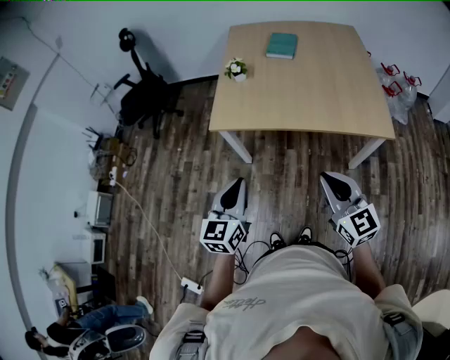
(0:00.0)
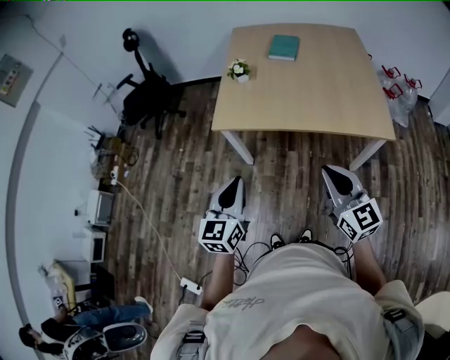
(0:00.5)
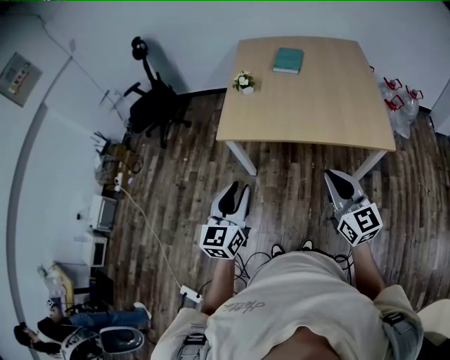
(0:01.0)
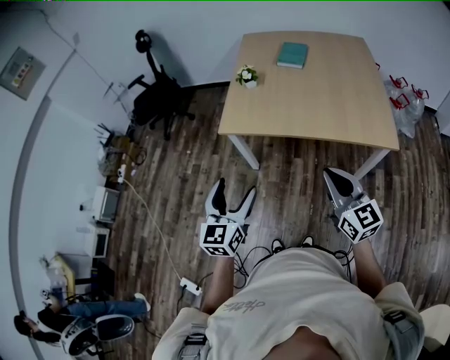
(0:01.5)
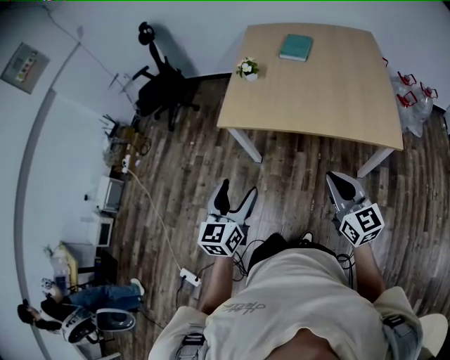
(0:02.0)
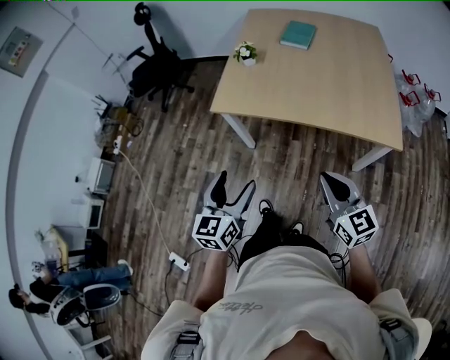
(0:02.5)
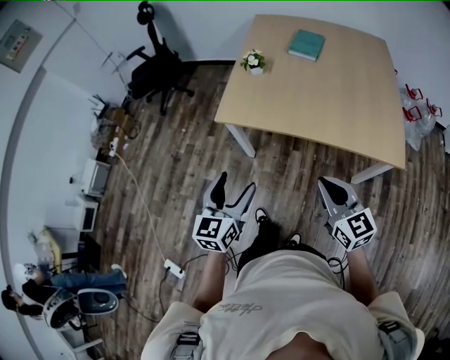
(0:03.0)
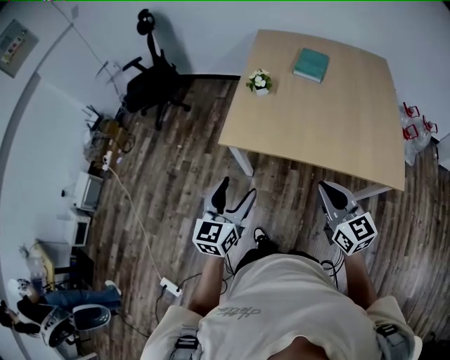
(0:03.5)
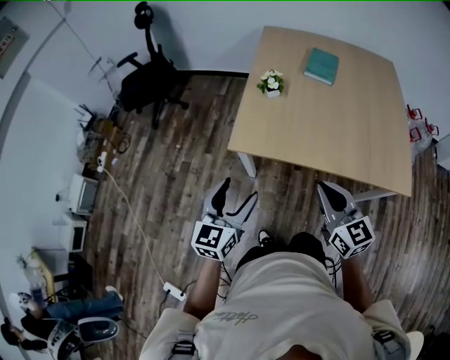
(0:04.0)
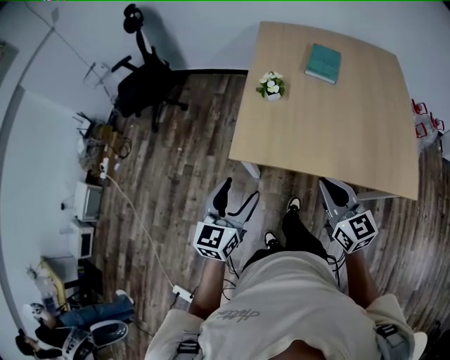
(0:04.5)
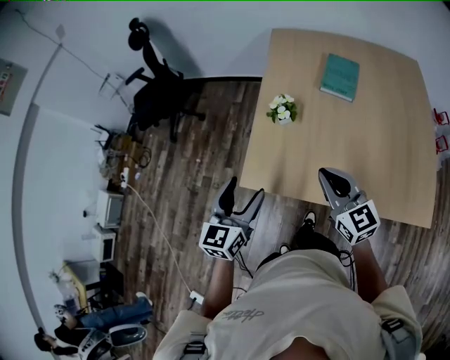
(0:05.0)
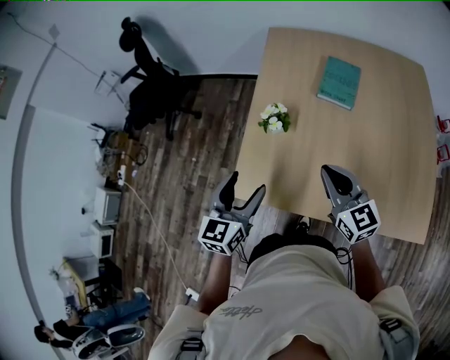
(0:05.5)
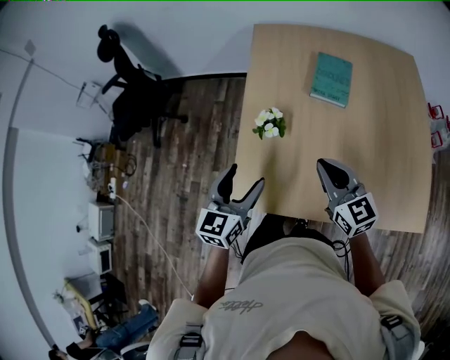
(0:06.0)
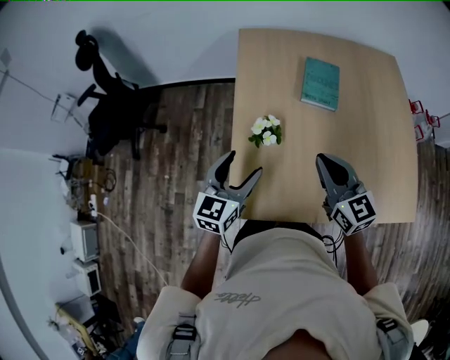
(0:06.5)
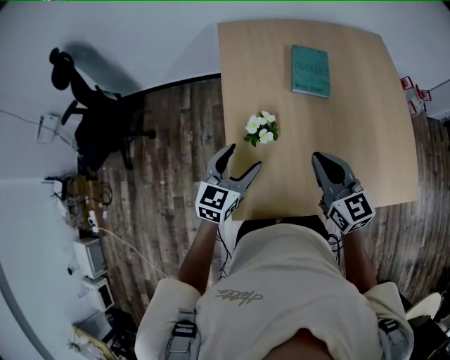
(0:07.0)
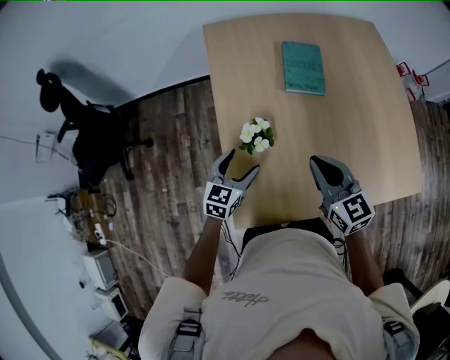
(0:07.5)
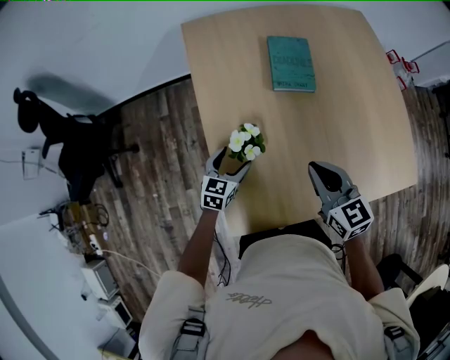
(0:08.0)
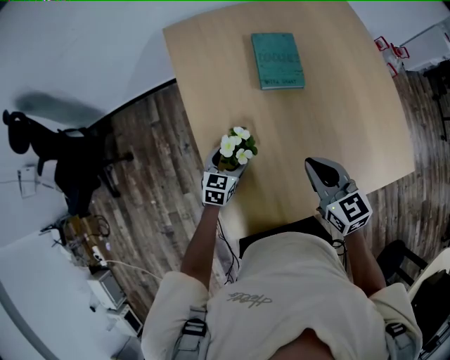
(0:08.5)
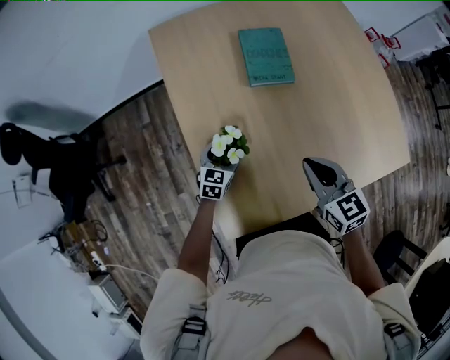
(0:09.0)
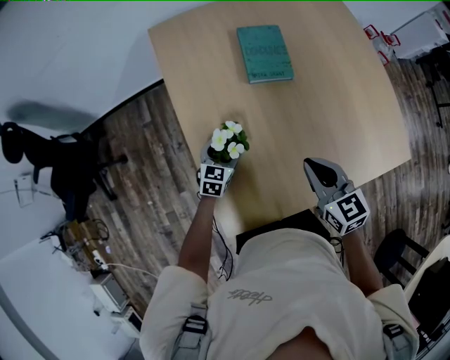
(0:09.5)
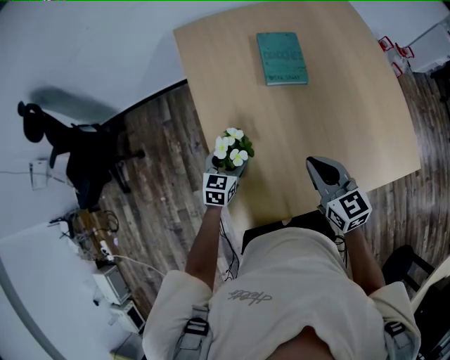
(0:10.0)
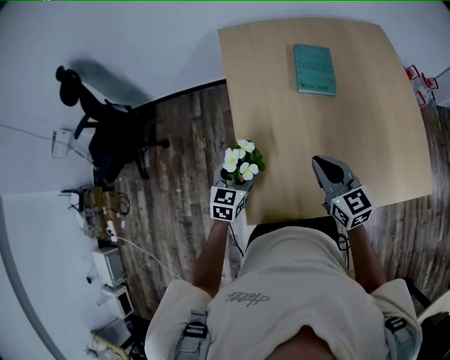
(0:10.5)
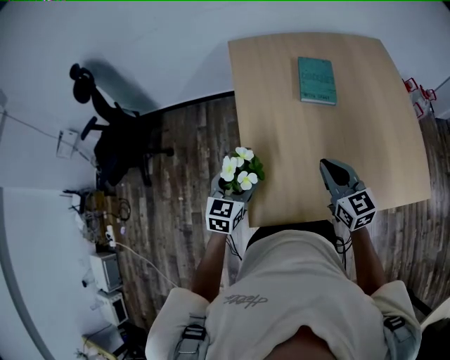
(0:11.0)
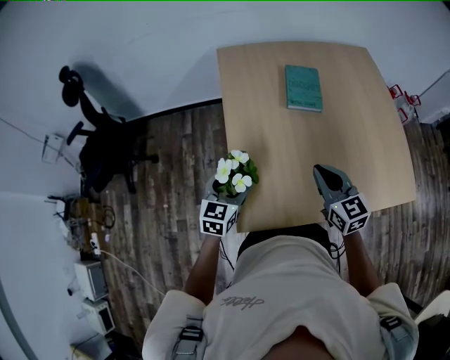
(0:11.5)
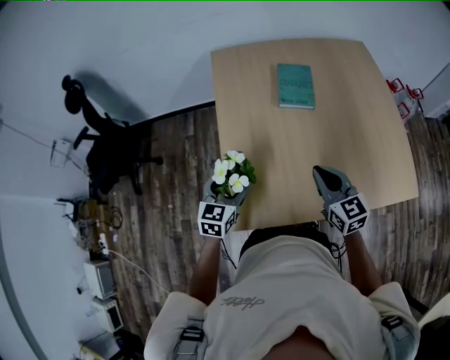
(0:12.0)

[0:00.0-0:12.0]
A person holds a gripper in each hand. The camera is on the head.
0:00.0 to 0:02.0: The right gripper shifts by some 5 cm. Meanwhile the left gripper opens its fingers.
0:02.0 to 0:04.0: The two grippers go about 20 cm forward and to the left.
0:04.0 to 0:06.0: The grippers both shift forward by approximately 30 cm.
0:06.0 to 0:08.0: The left gripper travels downward and forward by some 25 cm, and changes its angle by about 30 degrees, while the right gripper shifts by roughly 5 cm, and turns by about 20 degrees.
0:10.0 to 0:12.0: The left gripper heads upward and backward, covering some 15 cm.

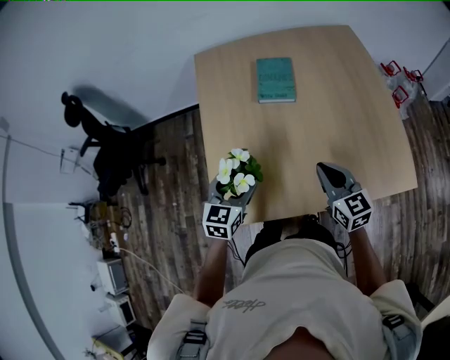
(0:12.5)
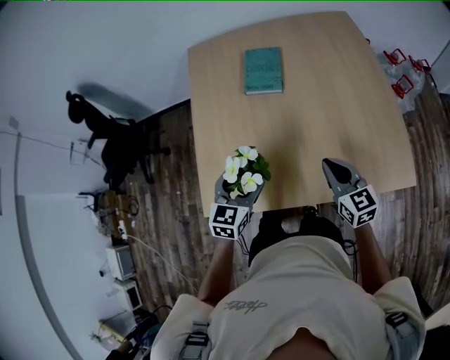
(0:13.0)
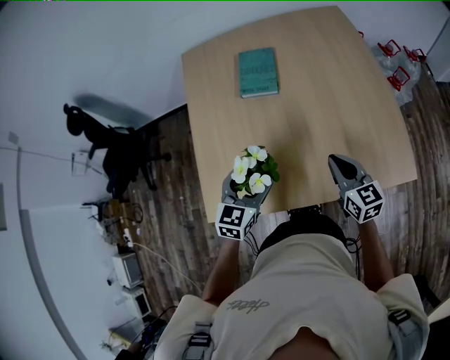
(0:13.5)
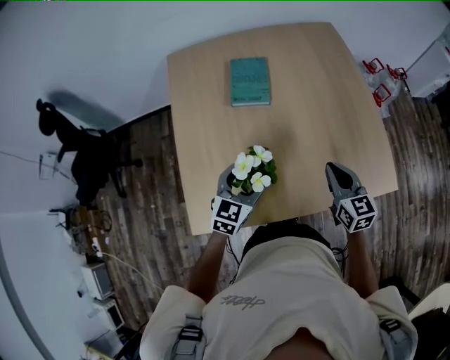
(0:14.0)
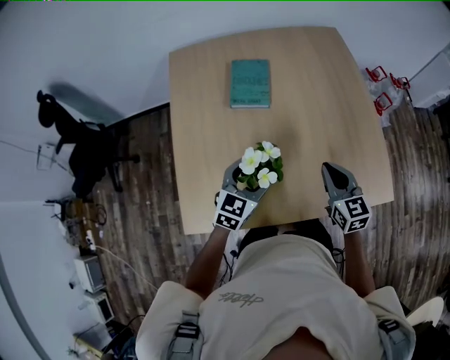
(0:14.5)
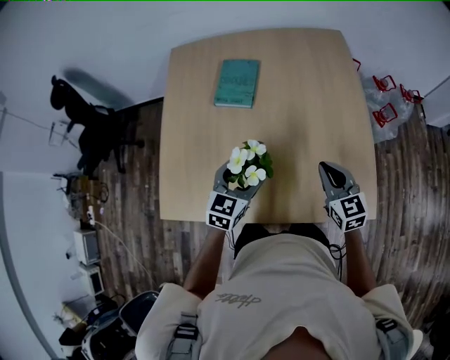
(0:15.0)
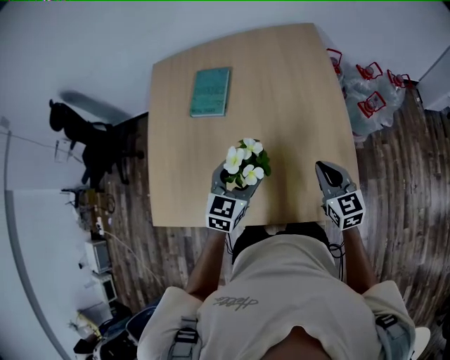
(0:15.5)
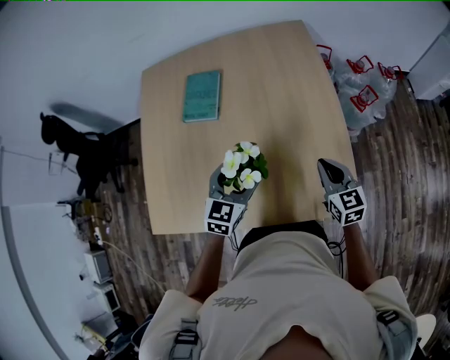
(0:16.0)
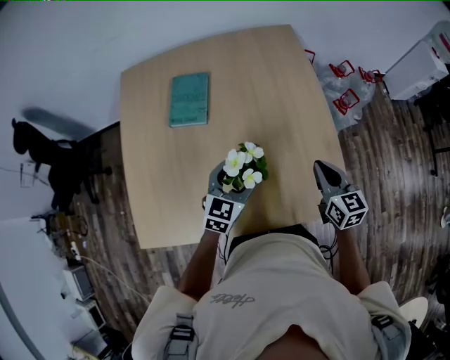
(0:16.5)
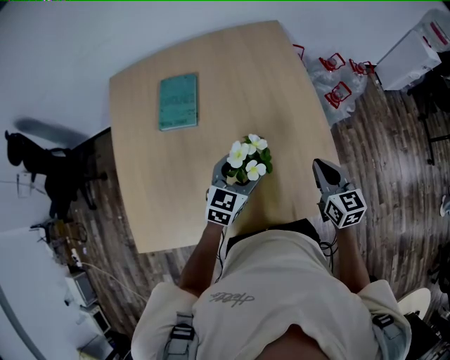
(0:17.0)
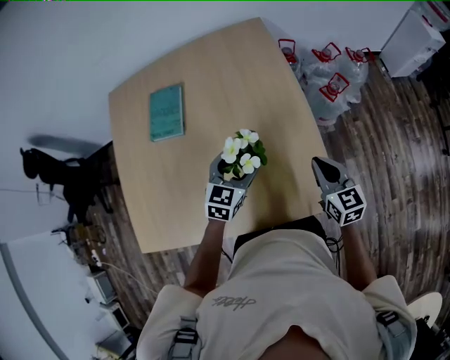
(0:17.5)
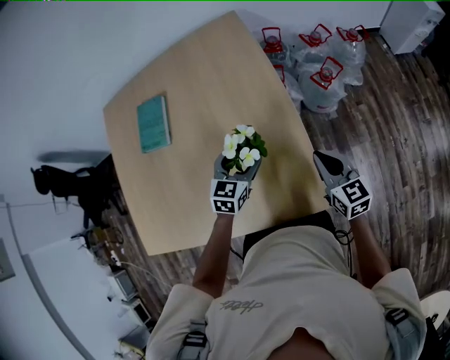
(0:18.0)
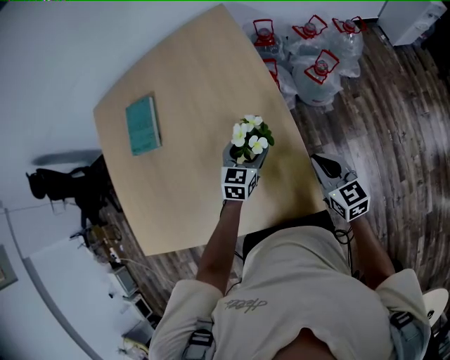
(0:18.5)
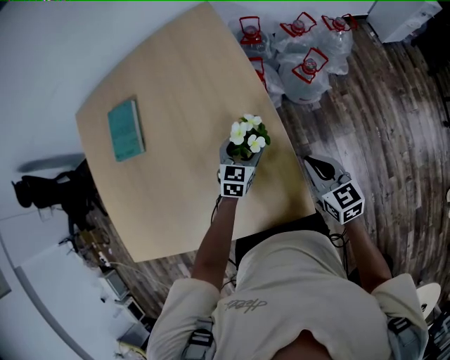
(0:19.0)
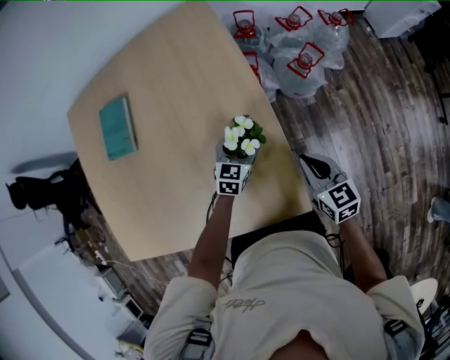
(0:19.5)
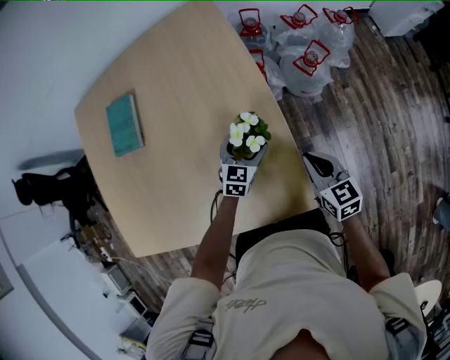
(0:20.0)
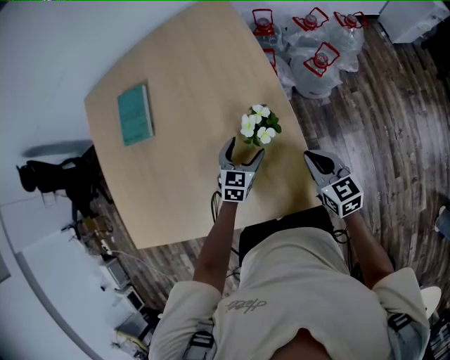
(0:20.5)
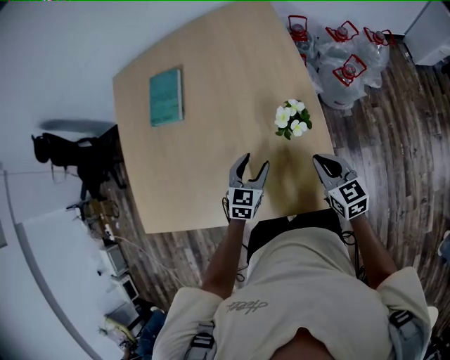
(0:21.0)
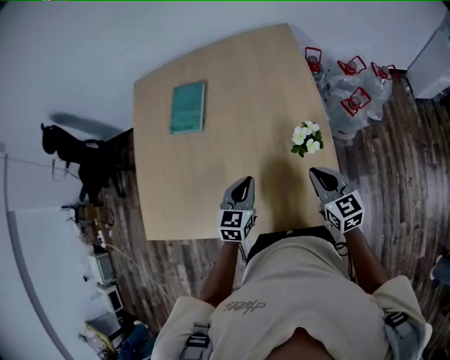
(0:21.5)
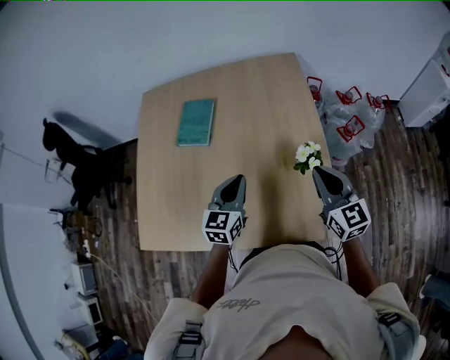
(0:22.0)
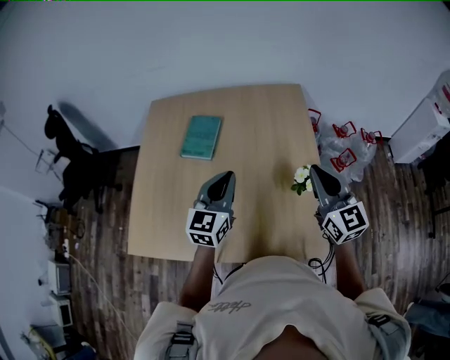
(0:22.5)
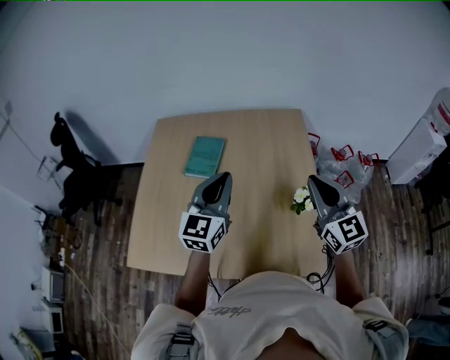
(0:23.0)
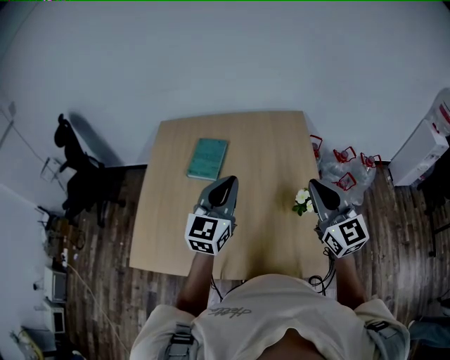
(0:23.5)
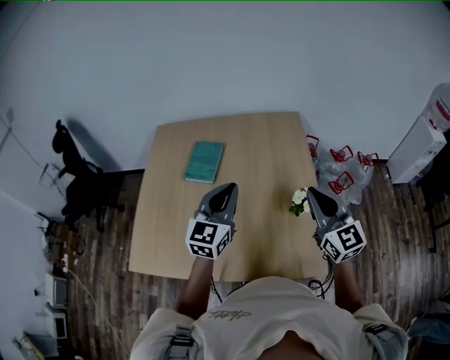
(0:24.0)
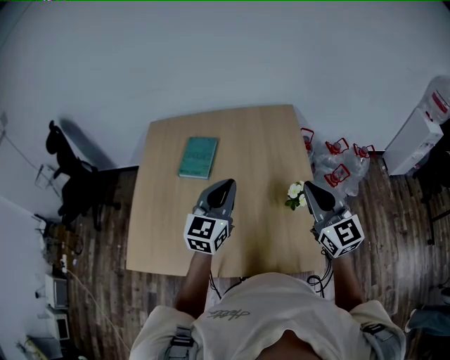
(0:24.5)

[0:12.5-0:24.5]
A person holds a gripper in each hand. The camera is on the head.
0:12.5 to 0:14.5: Both grippers travel together to the right, roughly 15 cm.
0:14.5 to 0:16.5: The two grippers go some 20 cm to the right.
0:16.5 to 0:18.5: The left gripper is displaced to the right, forward and downward by roughly 30 cm, while the right gripper moves to the right and downward, some 20 cm.
0:18.5 to 0:20.5: The left gripper changes place by about 5 cm.
0:20.5 to 0:22.5: The grippers both shift upward and to the left by roughly 35 cm. The left gripper points its fingers approximately 30 degrees further upward, and closes. Meanwhile the right gripper changes its angle by roughly 40 degrees.

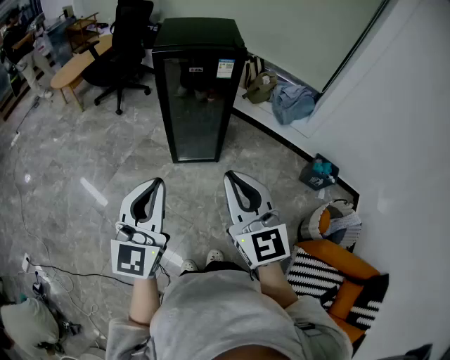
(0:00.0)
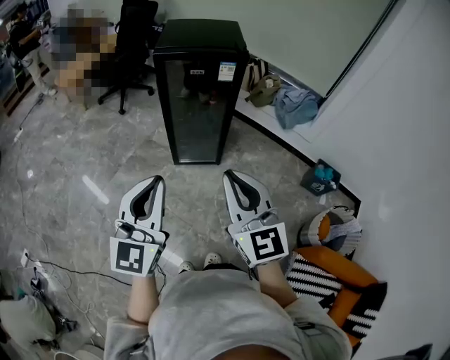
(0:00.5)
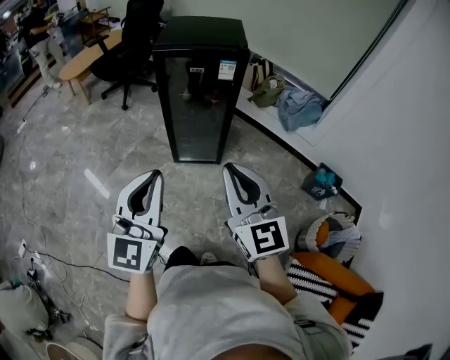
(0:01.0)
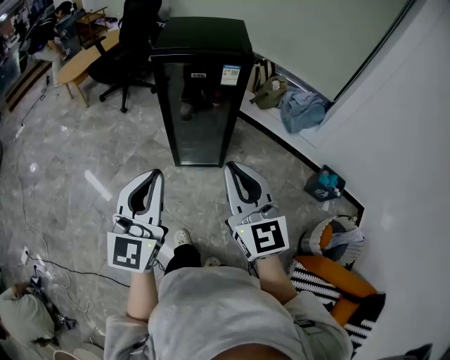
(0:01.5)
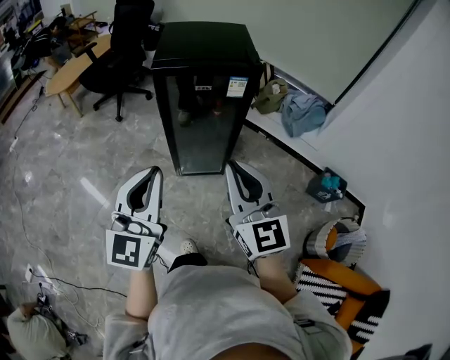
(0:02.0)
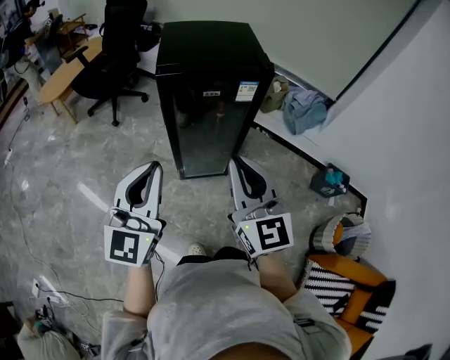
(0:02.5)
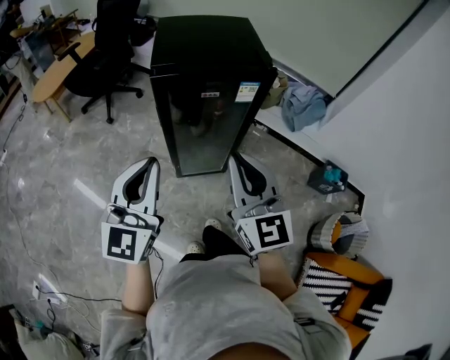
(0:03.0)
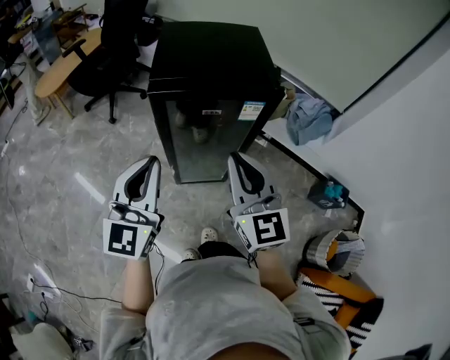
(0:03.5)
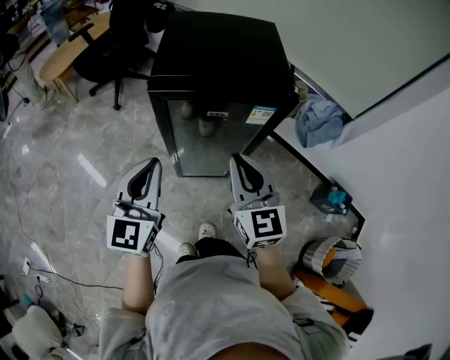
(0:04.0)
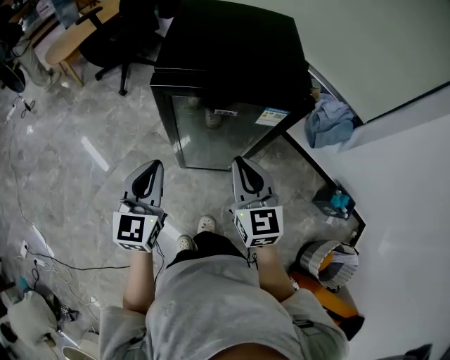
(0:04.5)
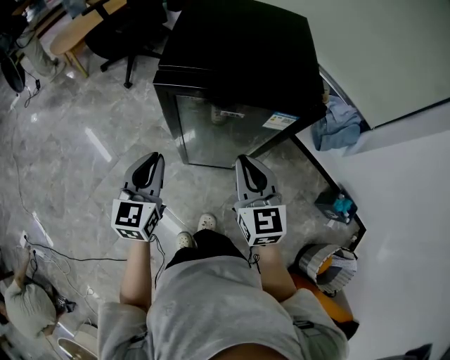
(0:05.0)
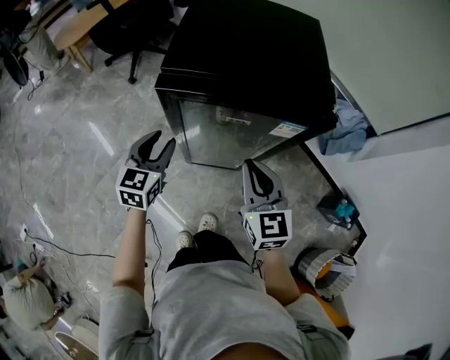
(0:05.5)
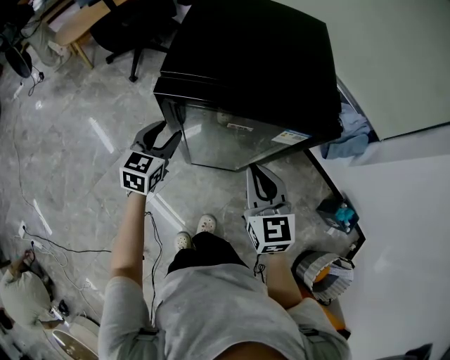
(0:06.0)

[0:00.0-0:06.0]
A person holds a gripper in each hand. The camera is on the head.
0:00.0 to 0:02.0: Both grippers travel together forward, about 15 cm.
0:02.0 to 0:04.0: The grippers both shift forward by about 25 cm.
0:04.0 to 0:06.0: The left gripper travels downward and forward by some 25 cm, turns by approximately 20 degrees, and opens its fingers. The right gripper shifts about 10 cm downward and forward.
